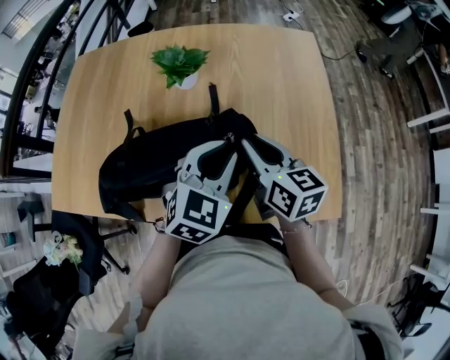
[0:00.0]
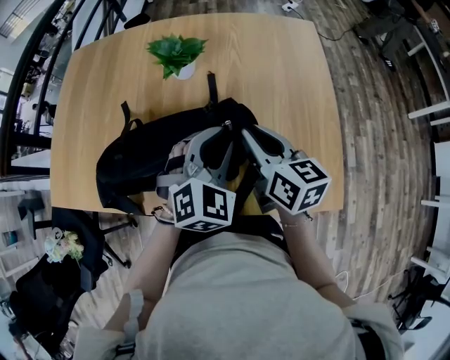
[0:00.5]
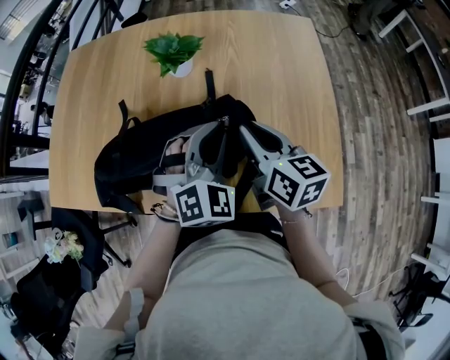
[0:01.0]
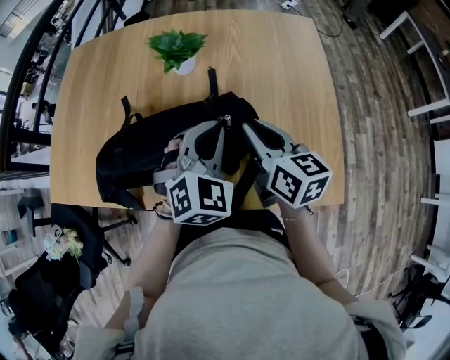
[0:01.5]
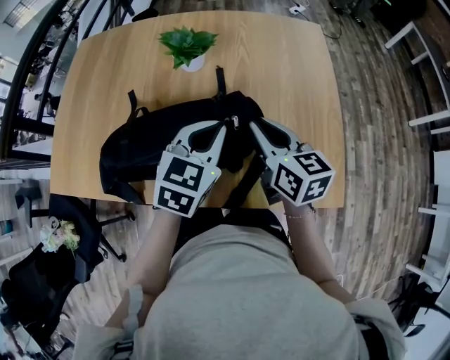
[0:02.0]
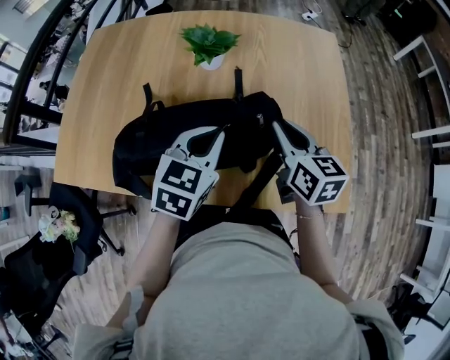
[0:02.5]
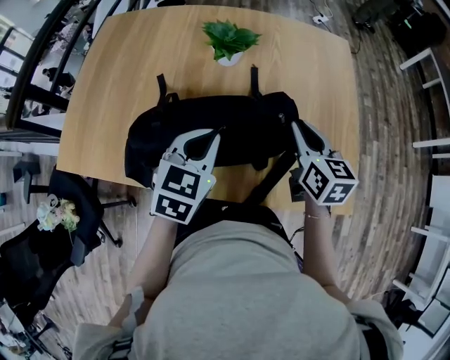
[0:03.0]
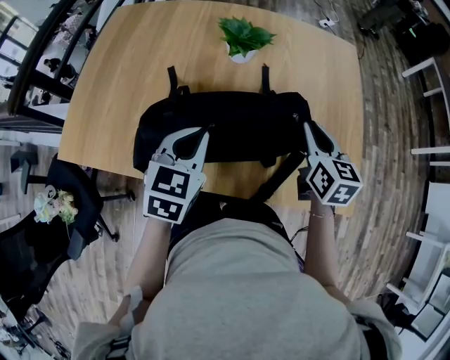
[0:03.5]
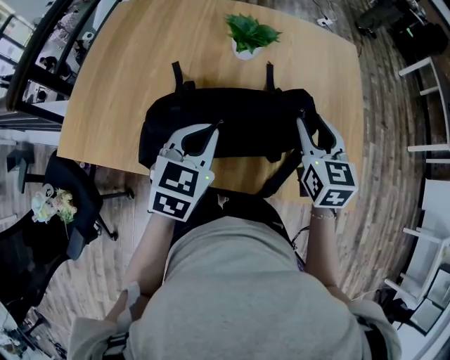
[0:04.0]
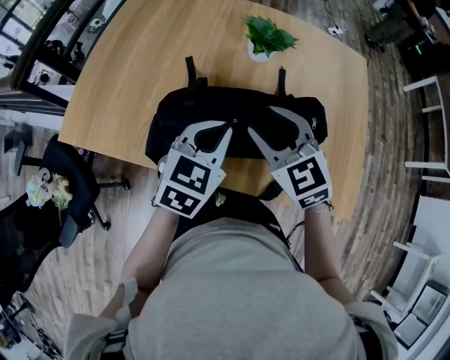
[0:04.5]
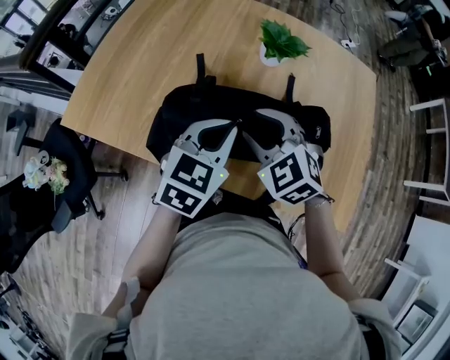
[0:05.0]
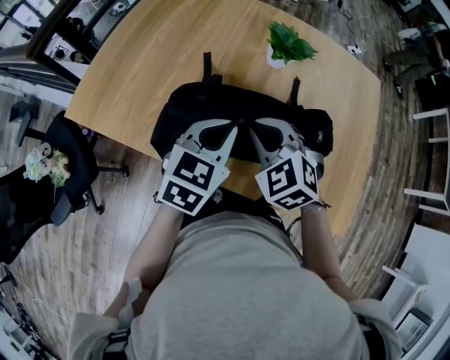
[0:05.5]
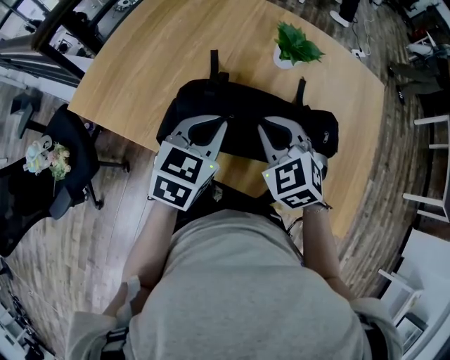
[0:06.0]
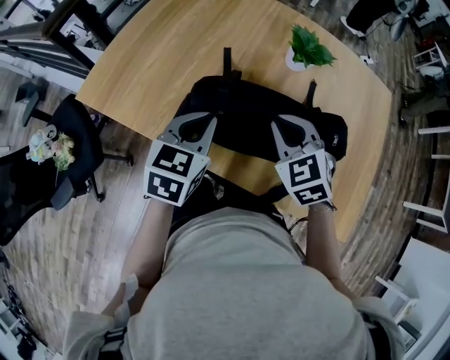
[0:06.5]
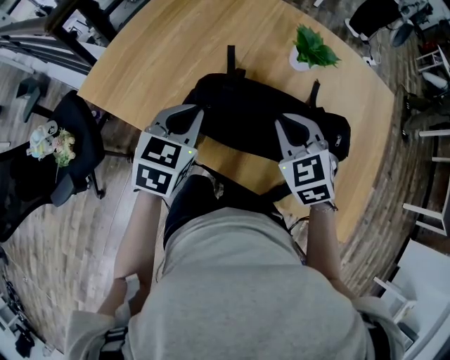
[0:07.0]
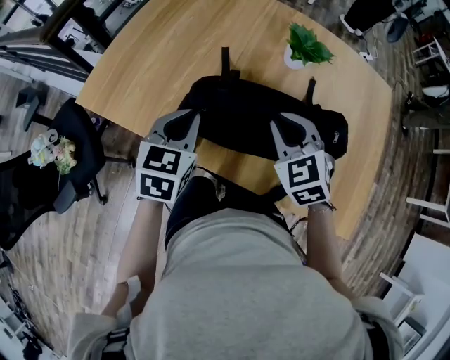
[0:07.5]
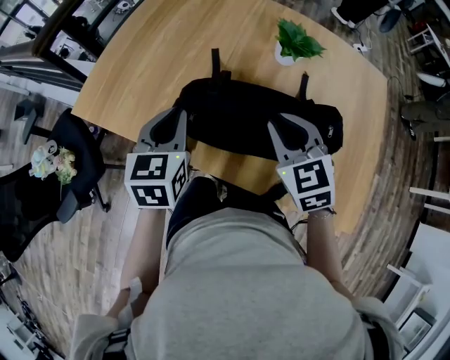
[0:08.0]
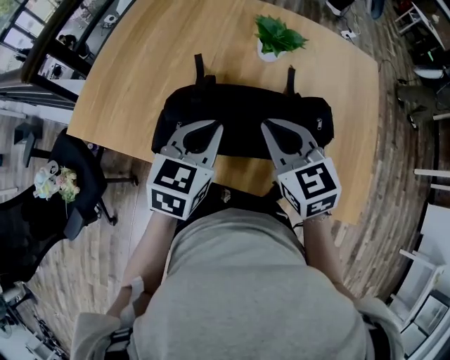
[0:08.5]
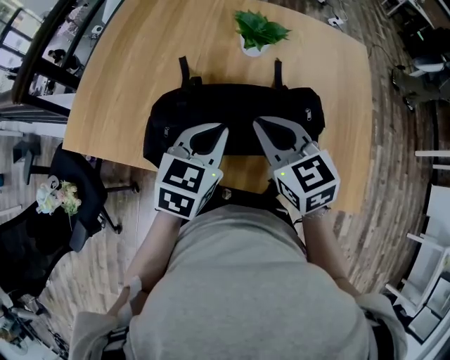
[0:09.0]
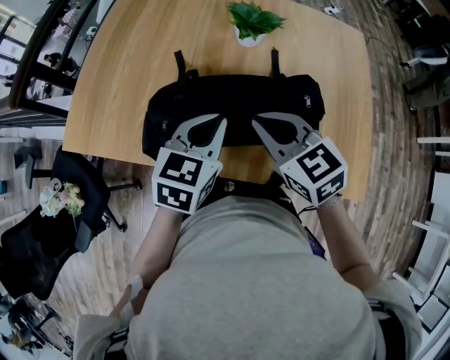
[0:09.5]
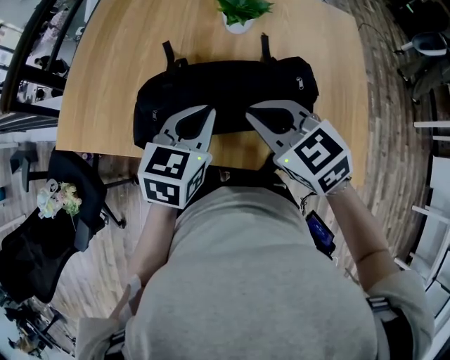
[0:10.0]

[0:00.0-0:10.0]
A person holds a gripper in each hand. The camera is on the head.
2.0 to 4.0 s: The right gripper turns by approximately 30 degrees, and opens its fingers, while the left gripper goes about 15 cm to the left.
4.0 to 6.0 s: The right gripper travels to the left by about 15 cm, rolls counterclockwise, seen from behind, by some 40 degrees, and closes.
6.0 to 8.0 s: The left gripper goes some 10 cm to the left, and swivels about 20 degrees.
8.0 to 10.0 s: The right gripper shifts about 5 cm backward. The left gripper heads to the right, covering approximately 15 cm, and turns by approximately 30 degrees.

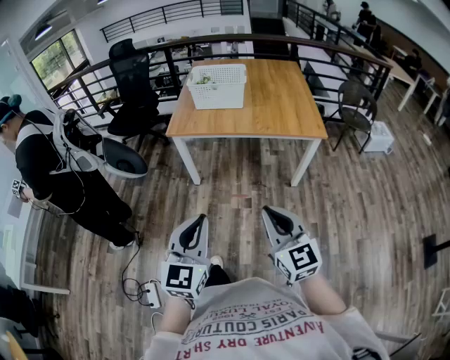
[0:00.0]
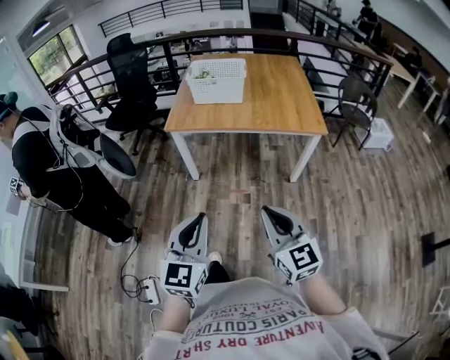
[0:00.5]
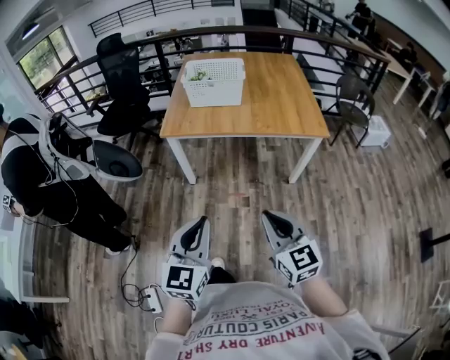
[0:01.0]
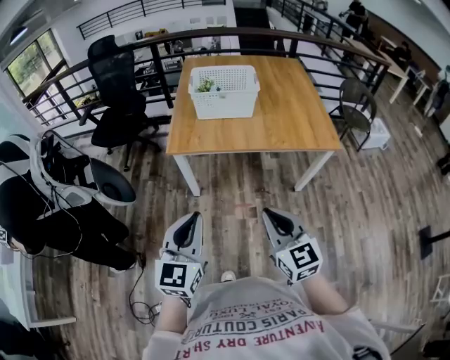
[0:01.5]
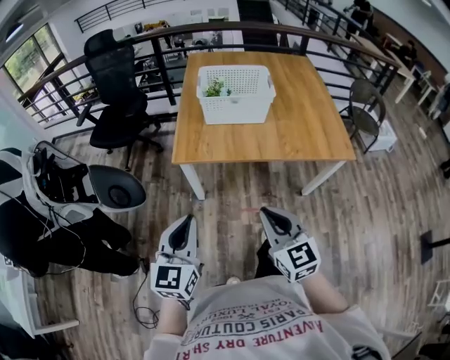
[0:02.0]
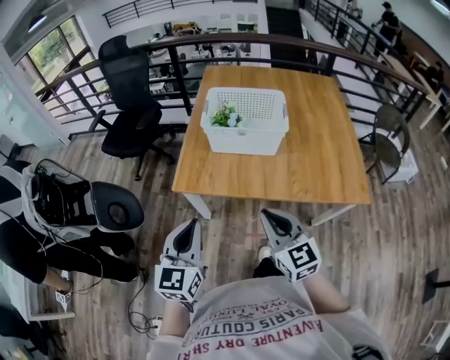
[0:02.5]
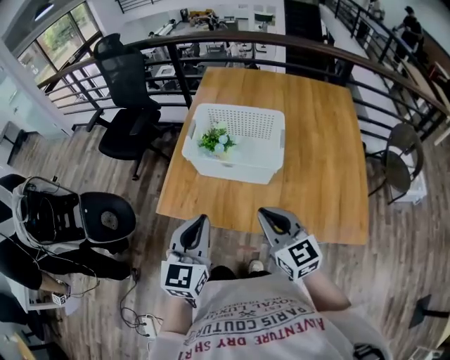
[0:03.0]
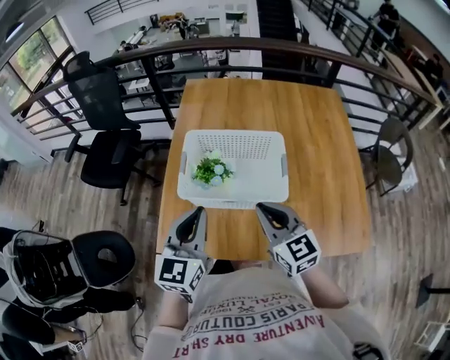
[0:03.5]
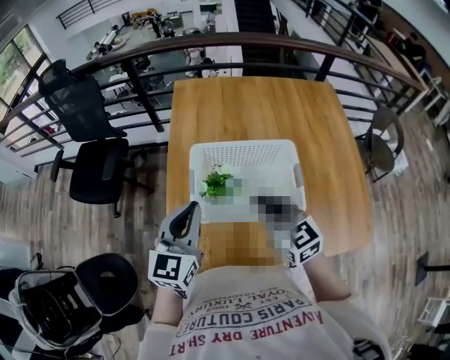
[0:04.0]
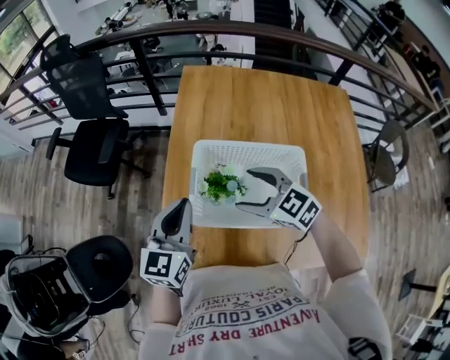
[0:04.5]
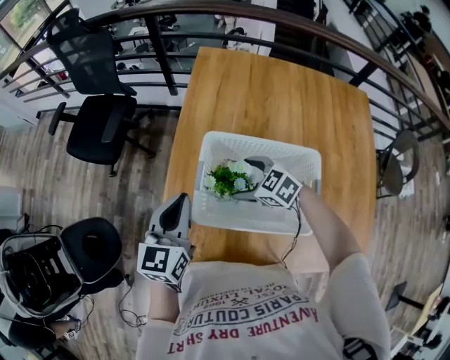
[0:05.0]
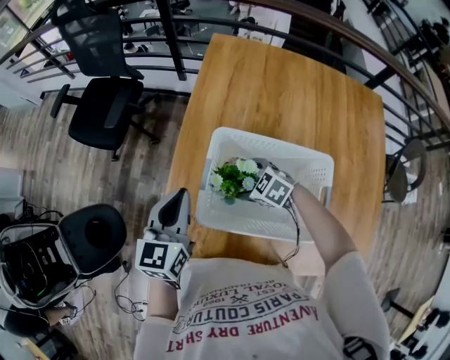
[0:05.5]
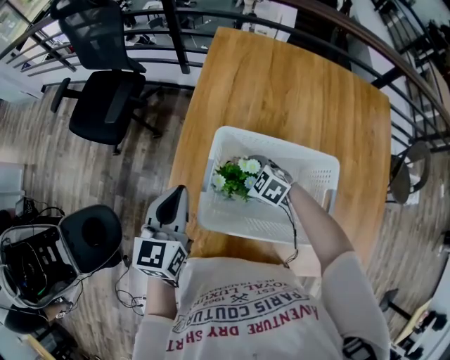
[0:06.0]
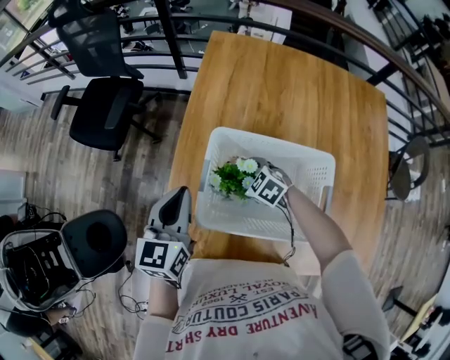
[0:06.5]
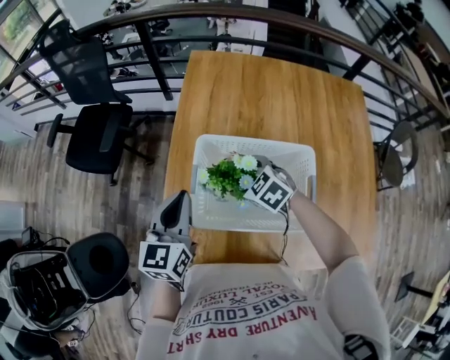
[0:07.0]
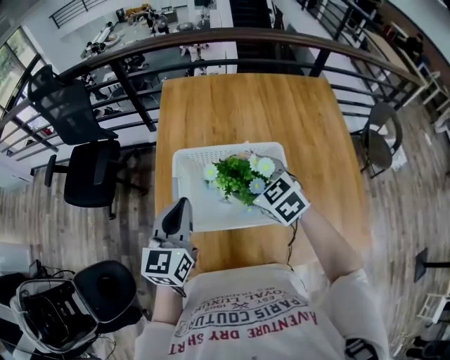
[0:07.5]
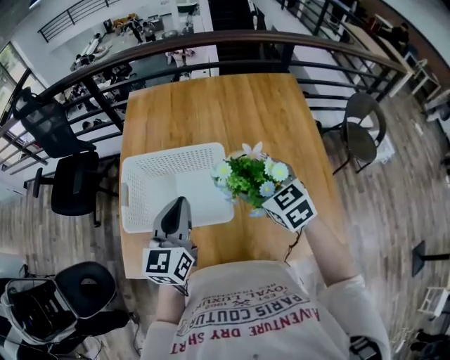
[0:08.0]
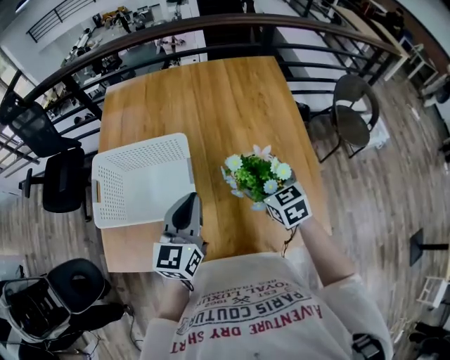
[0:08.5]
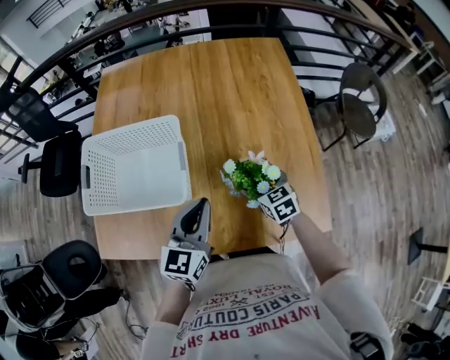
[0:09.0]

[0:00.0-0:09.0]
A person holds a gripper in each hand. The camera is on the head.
0.0 to 2.0 s: The grippers both shift forward and to the left by approximately 35 cm.
2.0 to 4.5 s: The two grippers travel together, forward, approximately 60 cm. The right gripper changes its angle by some 40 degrees, and opens up.
4.5 to 7.0 s: The right gripper shifts approximately 15 cm downward and forward, and rotates about 20 degrees.
7.0 to 9.0 s: The pair of grippers is taken some 40 cm. The right gripper swivels some 40 degrees.

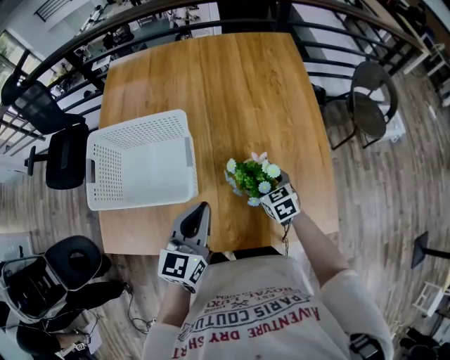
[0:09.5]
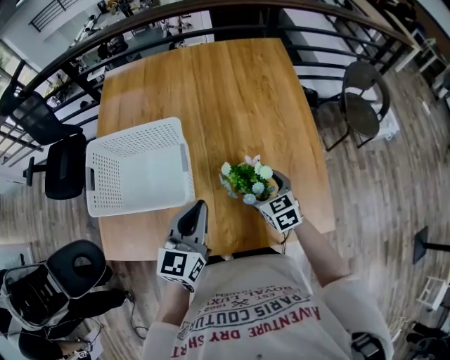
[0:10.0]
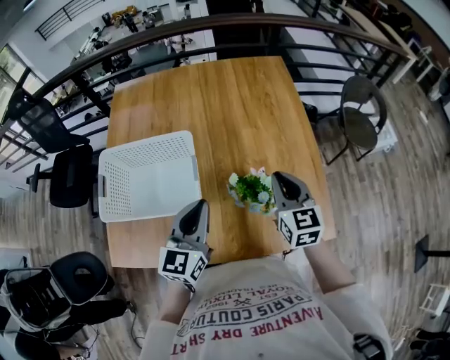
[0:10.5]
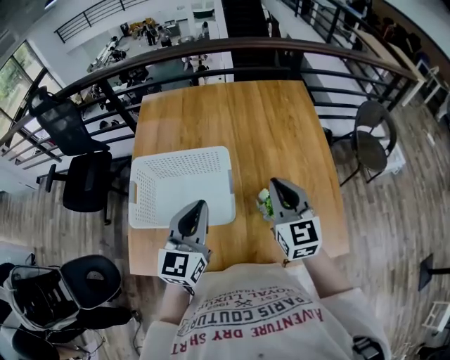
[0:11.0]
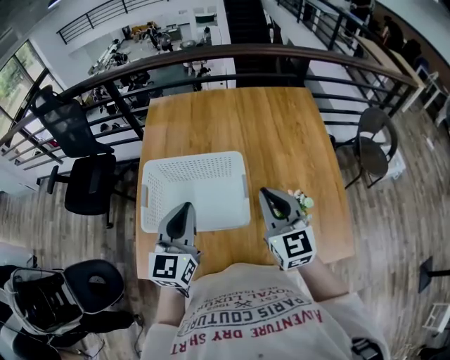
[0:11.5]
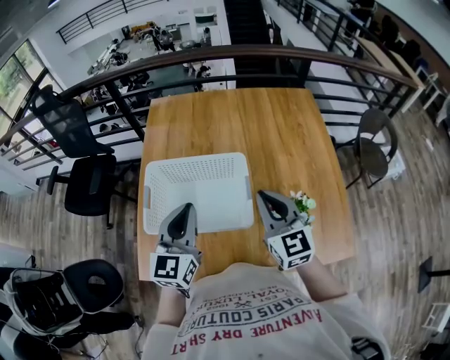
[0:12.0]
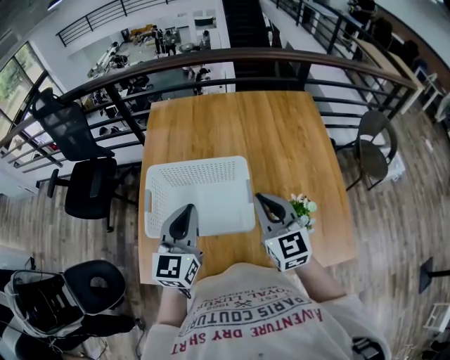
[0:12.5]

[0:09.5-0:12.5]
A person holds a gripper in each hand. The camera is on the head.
9.5 to 11.0 s: The left gripper shifts approximately 15 cm upward and to the left. Meanwhile the right gripper is displaced upward by about 30 cm, tilts its fingers approximately 30 degrees upward, and closes its fingers.
11.0 to 12.5 s: Both grippers move to the left, approximately 10 cm.

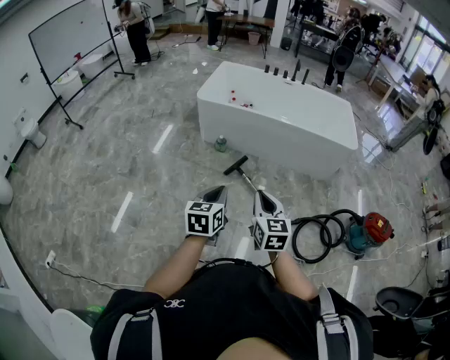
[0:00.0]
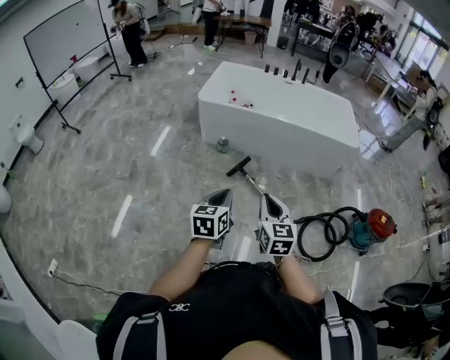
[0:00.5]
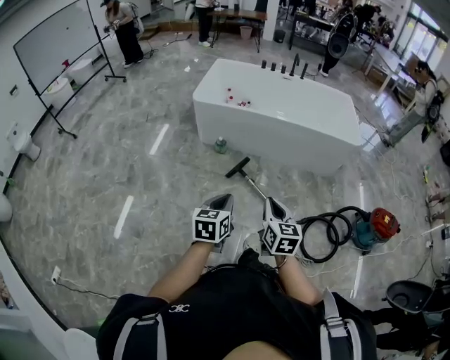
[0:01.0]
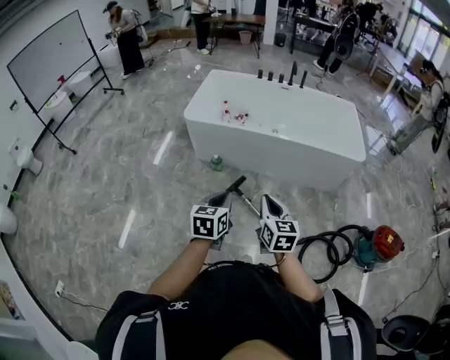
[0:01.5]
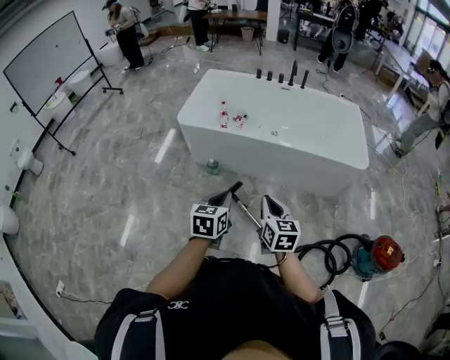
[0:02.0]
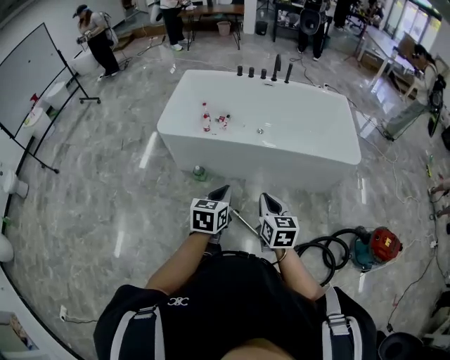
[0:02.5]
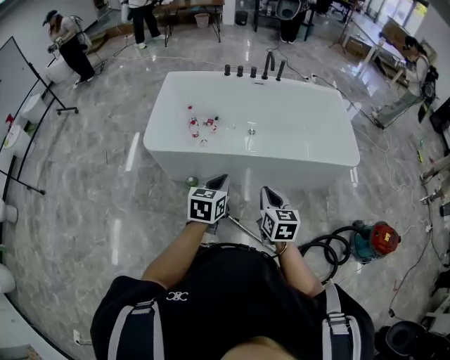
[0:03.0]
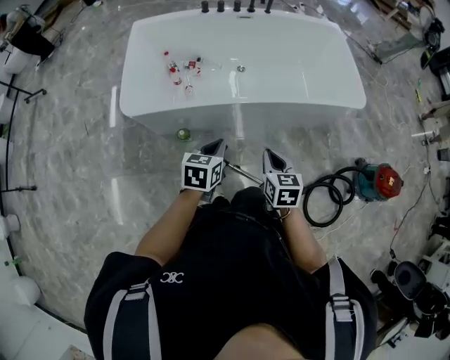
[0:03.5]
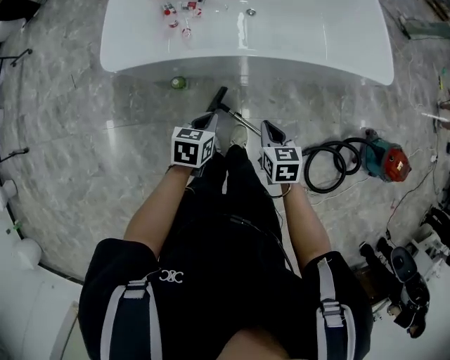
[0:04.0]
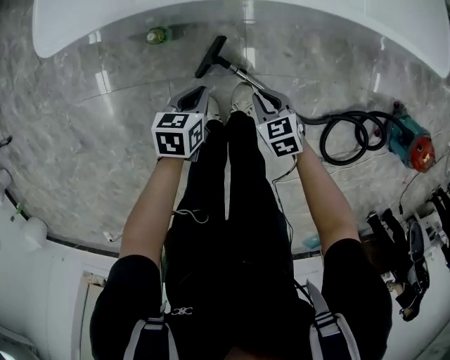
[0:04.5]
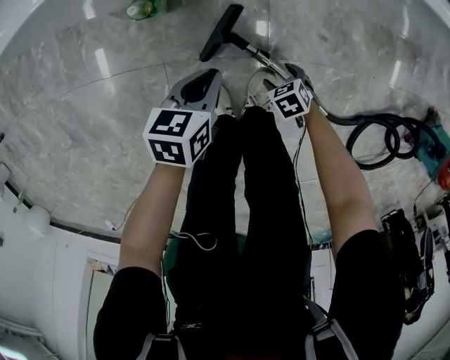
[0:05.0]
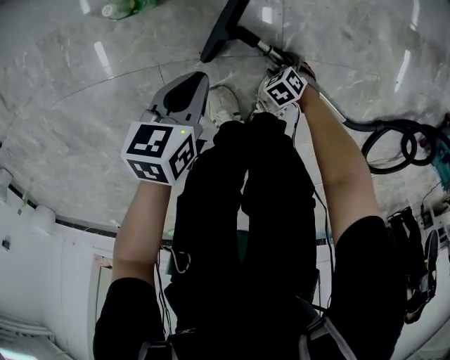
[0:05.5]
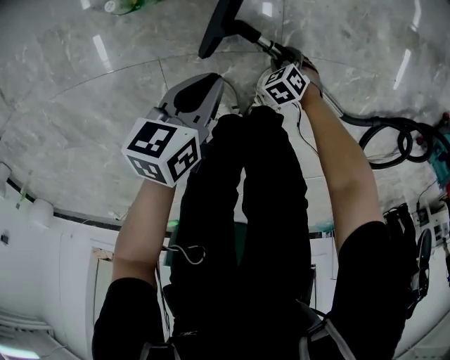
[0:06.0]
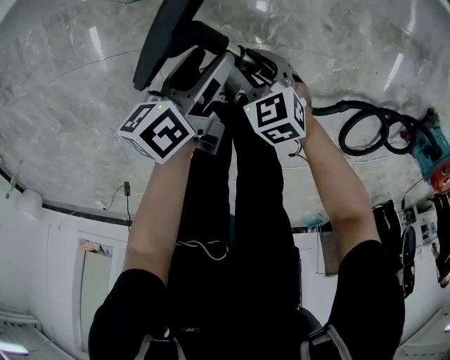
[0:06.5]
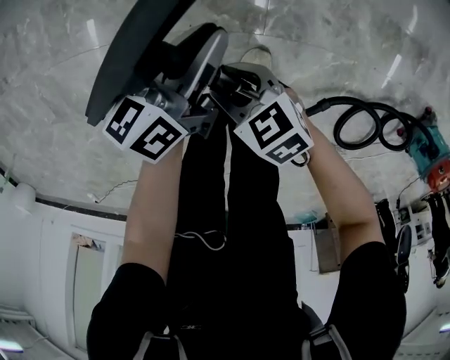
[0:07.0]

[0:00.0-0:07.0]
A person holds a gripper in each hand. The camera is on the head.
0.0 to 2.0 s: Both grippers travel together forward, some 35 cm.
2.0 to 3.5 s: The right gripper travels forward and downward by about 30 cm, and rotates some 20 degrees, while the left gripper travels forward by approximately 35 cm, and rotates roughly 30 degrees.
3.5 to 5.0 s: Both grippers travel together downward, roughly 60 cm. The right gripper tips its fingers downward by about 40 degrees, and opens its fingers.
5.0 to 7.0 s: The right gripper is displaced upward by some 20 cm, tips its fingers upward by approximately 30 degrees, and closes. The left gripper heads upward, covering about 10 cm, points its fingers roughly 30 degrees further upward, and opens and closes again.
